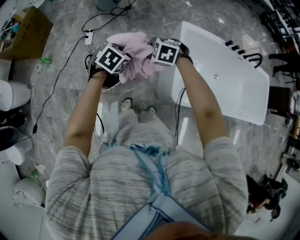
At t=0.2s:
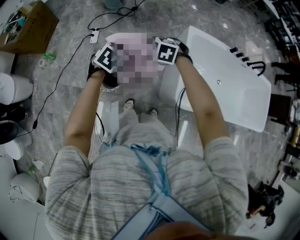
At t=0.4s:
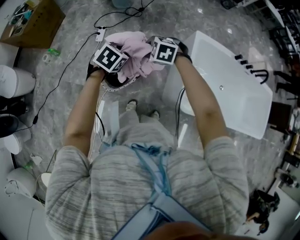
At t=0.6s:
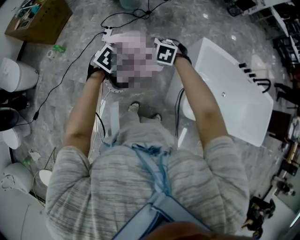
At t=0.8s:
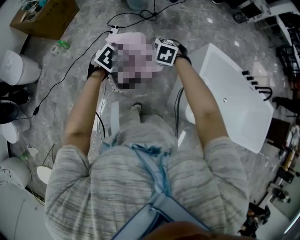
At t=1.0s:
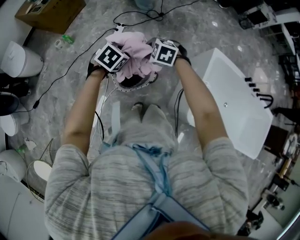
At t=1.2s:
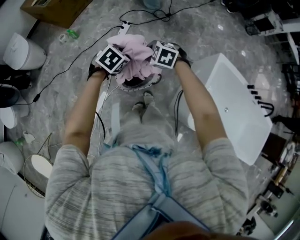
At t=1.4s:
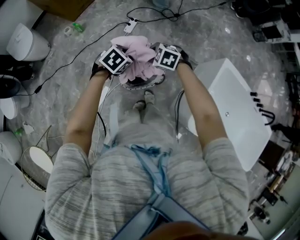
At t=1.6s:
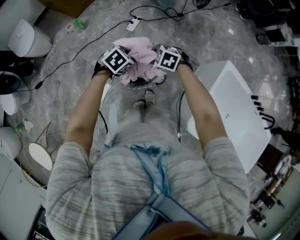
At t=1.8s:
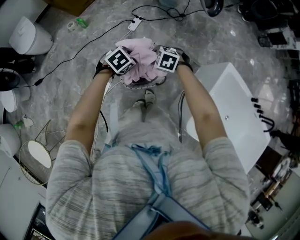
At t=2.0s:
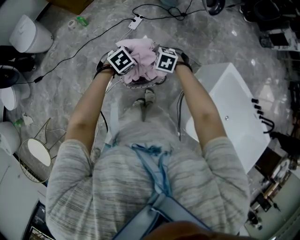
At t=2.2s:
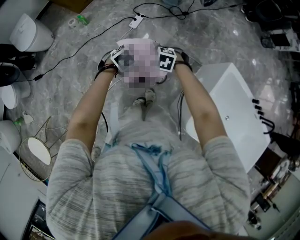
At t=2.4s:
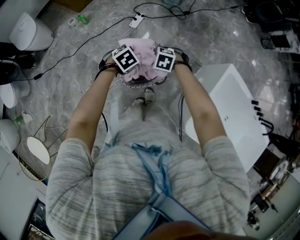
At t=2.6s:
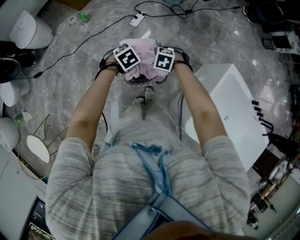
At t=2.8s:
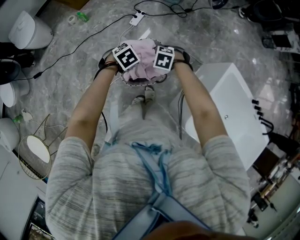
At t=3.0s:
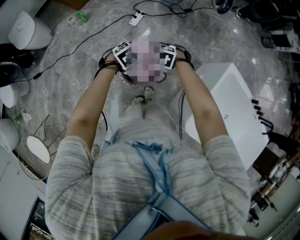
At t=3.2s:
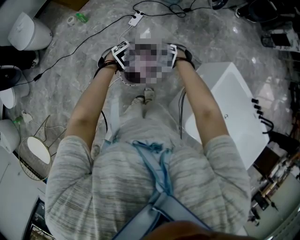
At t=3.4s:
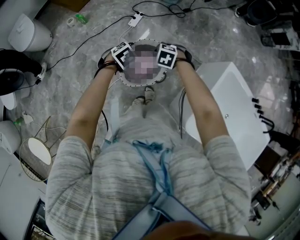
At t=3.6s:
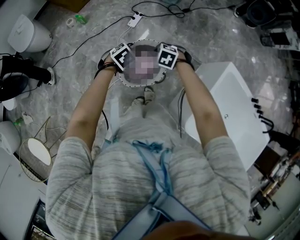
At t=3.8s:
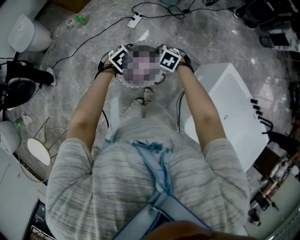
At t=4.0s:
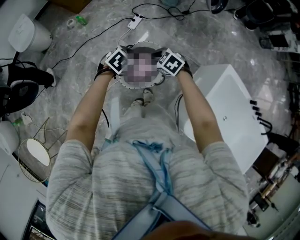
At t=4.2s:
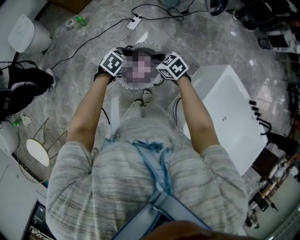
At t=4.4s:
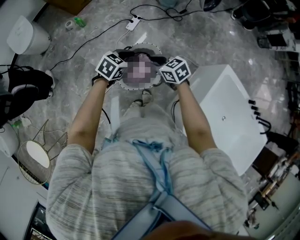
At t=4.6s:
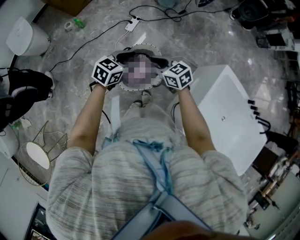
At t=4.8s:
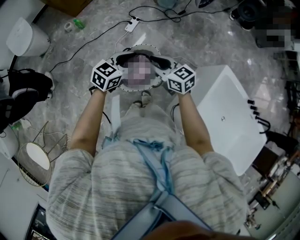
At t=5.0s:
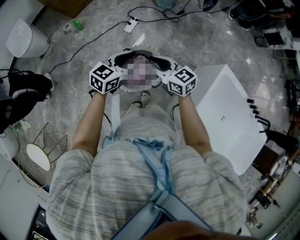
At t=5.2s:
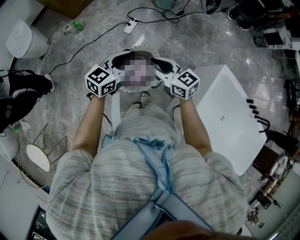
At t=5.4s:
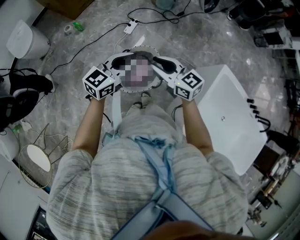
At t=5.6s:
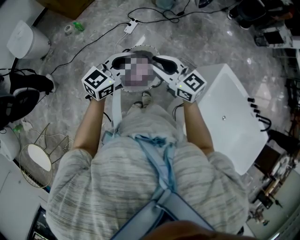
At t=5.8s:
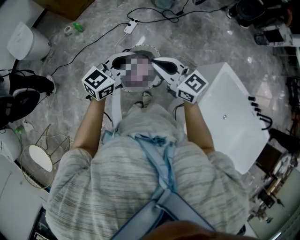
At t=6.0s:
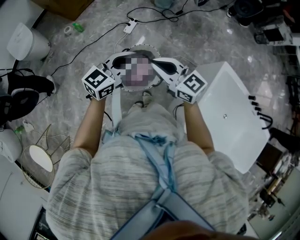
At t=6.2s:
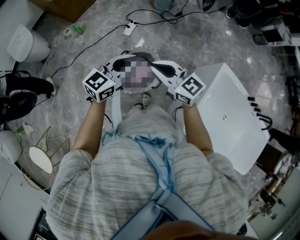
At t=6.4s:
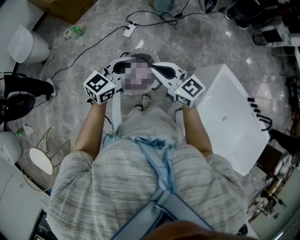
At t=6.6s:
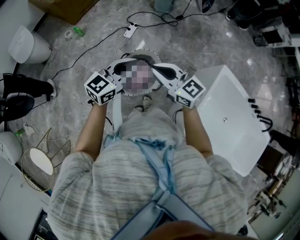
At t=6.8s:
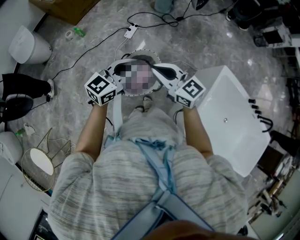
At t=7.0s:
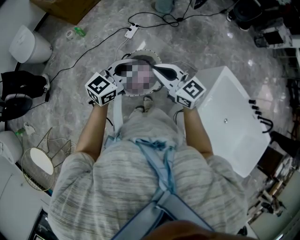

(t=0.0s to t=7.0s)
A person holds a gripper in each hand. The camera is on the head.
t=0.0s - t=1.4s: The left gripper shifts approximately 25 cm to the left. Meanwhile the right gripper travels to the left and forward by roughly 25 cm.
t=1.4s - t=2.8s: Both grippers travel together downward, roughly 10 cm.
t=2.8s - t=4.2s: The left gripper changes its angle by roughly 20 degrees, while the right gripper is displaced upward by approximately 5 cm, and swivels roughly 40 degrees.
t=4.2s - t=5.6s: Both grippers move upward, about 20 cm. The left gripper points its fingers about 40 degrees further upward. Meanwhile the right gripper tips its fingers upward by roughly 40 degrees.
t=5.6s - t=7.0s: The grippers move only a little.

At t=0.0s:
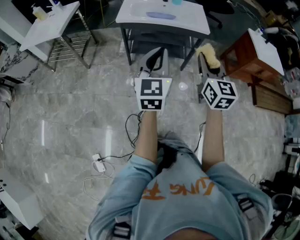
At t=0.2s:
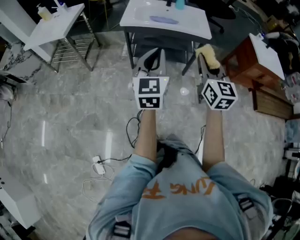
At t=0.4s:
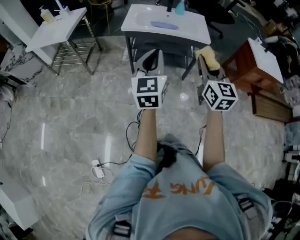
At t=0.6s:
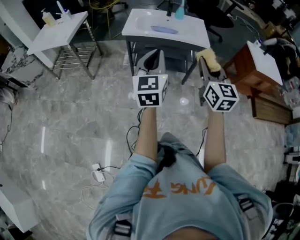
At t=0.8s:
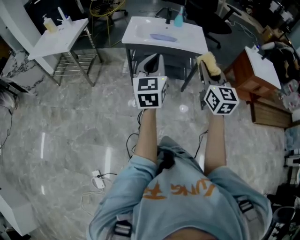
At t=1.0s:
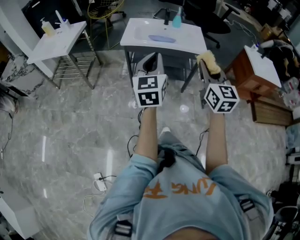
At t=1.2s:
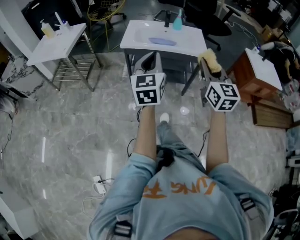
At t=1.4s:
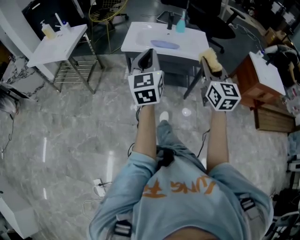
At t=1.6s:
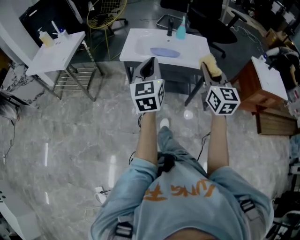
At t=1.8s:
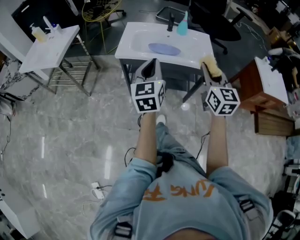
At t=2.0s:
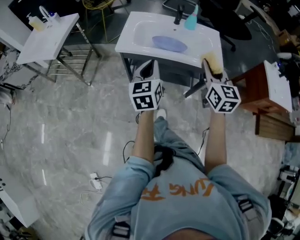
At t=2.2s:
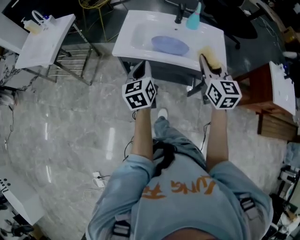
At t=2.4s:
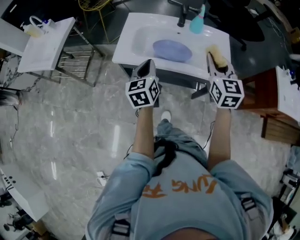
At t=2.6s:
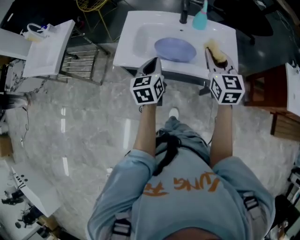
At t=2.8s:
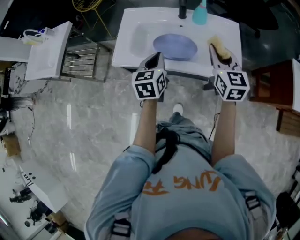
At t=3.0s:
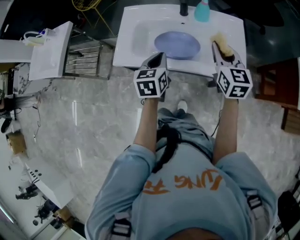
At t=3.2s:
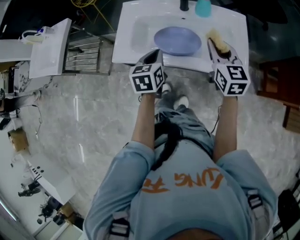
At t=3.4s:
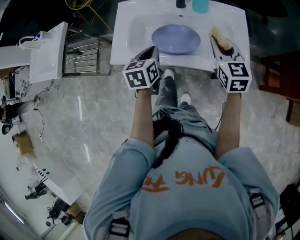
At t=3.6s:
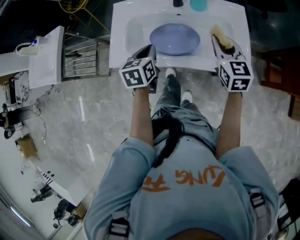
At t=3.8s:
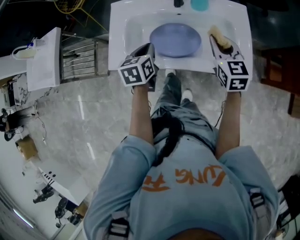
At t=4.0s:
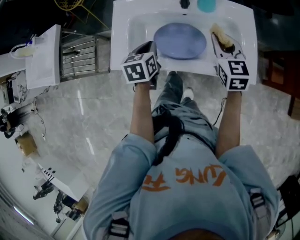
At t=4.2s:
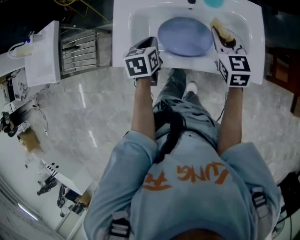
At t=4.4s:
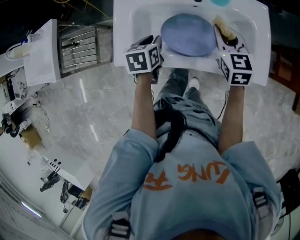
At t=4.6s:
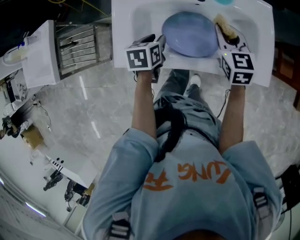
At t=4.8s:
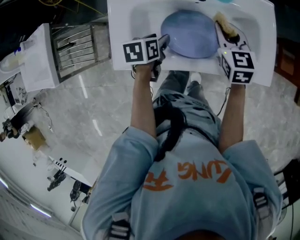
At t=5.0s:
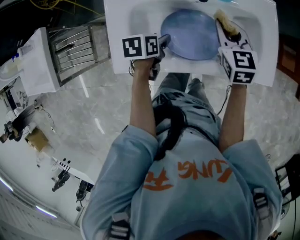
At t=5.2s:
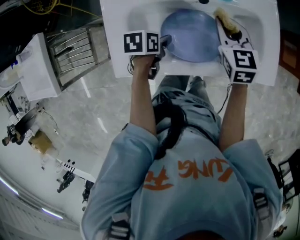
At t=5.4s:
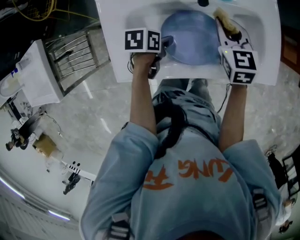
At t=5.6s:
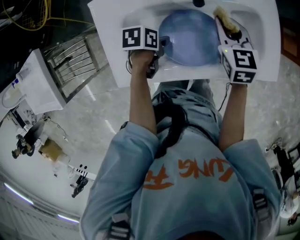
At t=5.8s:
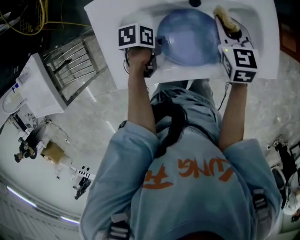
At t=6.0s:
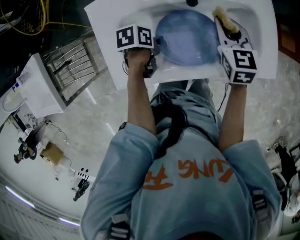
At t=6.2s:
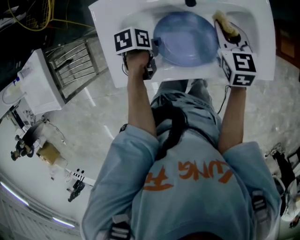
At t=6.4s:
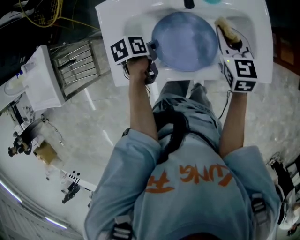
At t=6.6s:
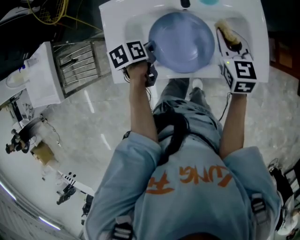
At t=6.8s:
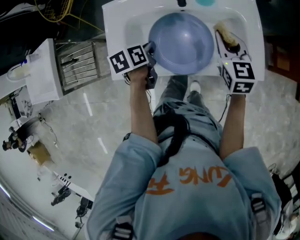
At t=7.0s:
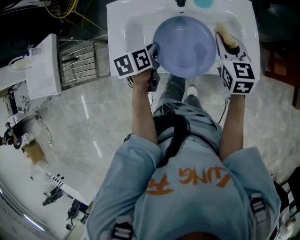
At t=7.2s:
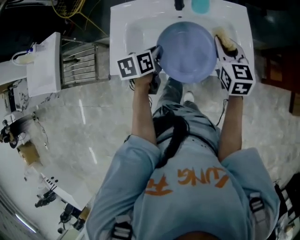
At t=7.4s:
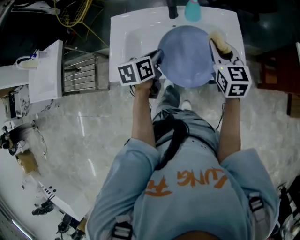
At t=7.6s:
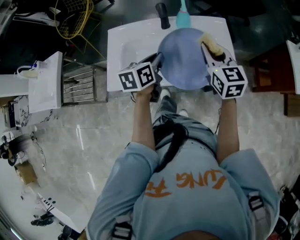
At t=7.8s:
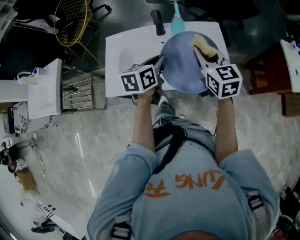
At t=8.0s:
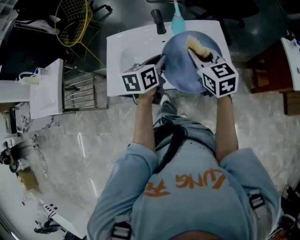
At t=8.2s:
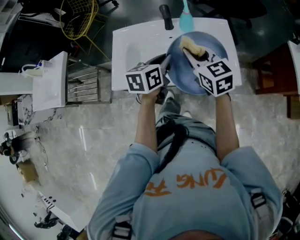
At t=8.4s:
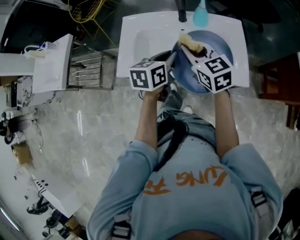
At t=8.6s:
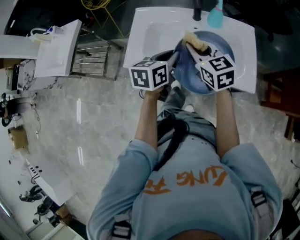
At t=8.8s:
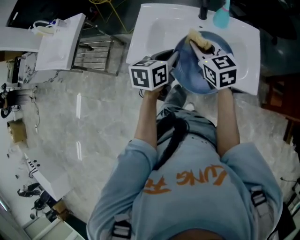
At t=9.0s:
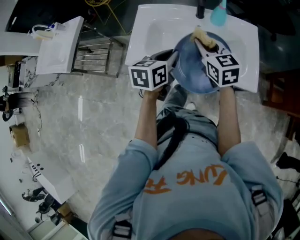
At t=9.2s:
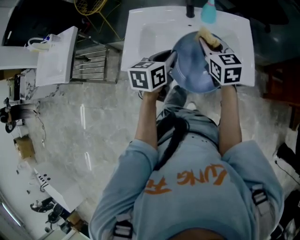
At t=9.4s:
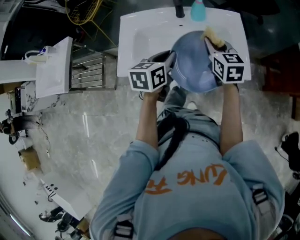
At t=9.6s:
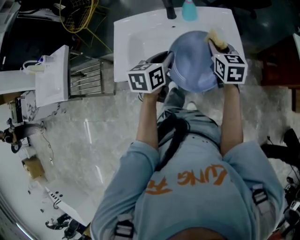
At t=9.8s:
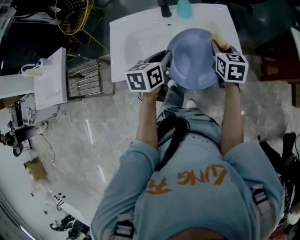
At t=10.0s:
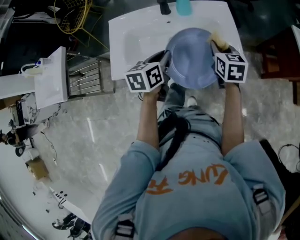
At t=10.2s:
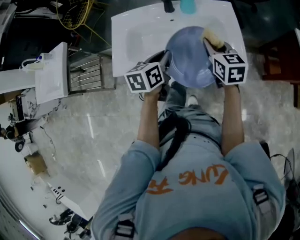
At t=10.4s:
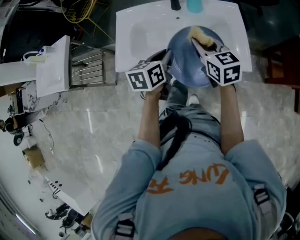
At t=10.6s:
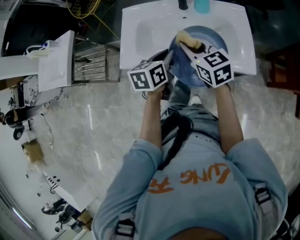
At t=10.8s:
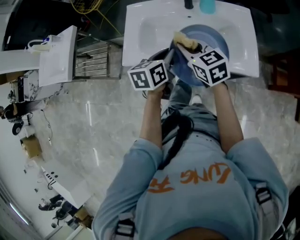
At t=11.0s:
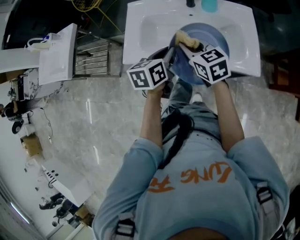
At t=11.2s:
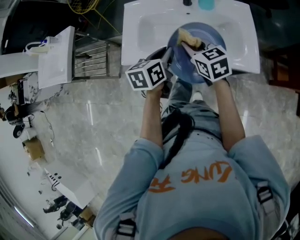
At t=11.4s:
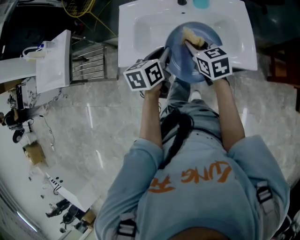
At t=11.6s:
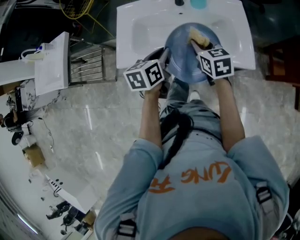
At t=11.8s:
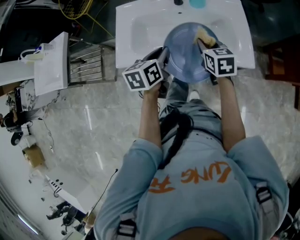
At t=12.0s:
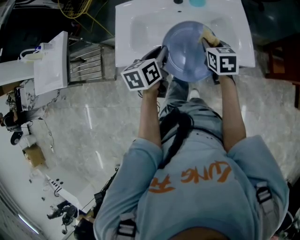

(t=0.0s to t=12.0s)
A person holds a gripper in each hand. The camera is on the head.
t=0.0s - t=1.6s: The grippers both shift forward by roughly 15 cm.
t=1.6s - t=3.0s: The right gripper goes about 40 cm forward; the left gripper is displaced forward and downward by approximately 40 cm, and tips its fingers downward by approximately 30 degrees.
t=3.0s - t=4.4s: Both grippers travel together downward, forward and to the left, some 15 cm. The left gripper rotates about 20 degrees, and opens.
t=4.4s - t=6.0s: The left gripper travels downward by about 10 cm, rotates some 40 degrees, and opens, then closes again; the right gripper shifts about 5 cm downward.
t=6.0s - t=7.6s: Both grippers move upward, some 20 cm. The right gripper changes its angle by some 20 degrees. Meanwhile the left gripper tilts its fingers some 30 degrees upward.
t=7.6s - t=9.0s: The right gripper heads to the left, covering approximately 15 cm. The left gripper heads to the left and backward, covering some 10 cm.
t=9.0s - t=10.4s: The grippers both shift to the right by about 5 cm.
t=10.4s - t=12.0s: The right gripper moves downward, some 10 cm, and reaches roughly 10 cm to the left, then returns.

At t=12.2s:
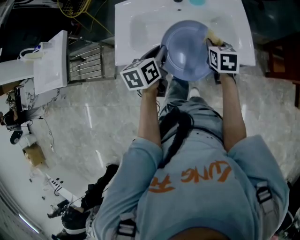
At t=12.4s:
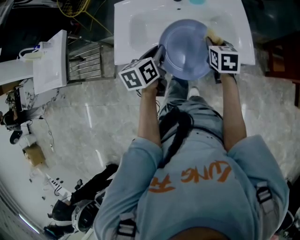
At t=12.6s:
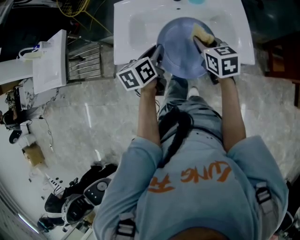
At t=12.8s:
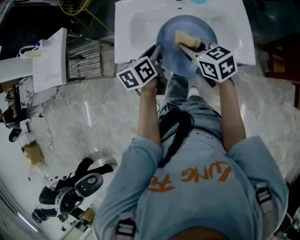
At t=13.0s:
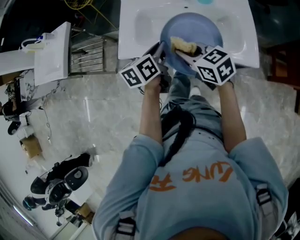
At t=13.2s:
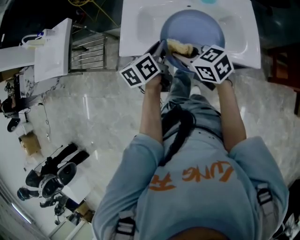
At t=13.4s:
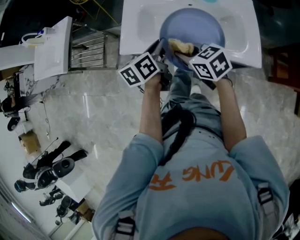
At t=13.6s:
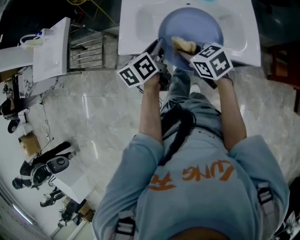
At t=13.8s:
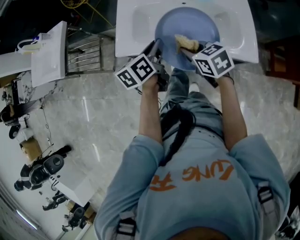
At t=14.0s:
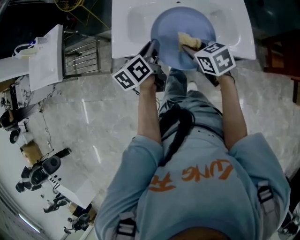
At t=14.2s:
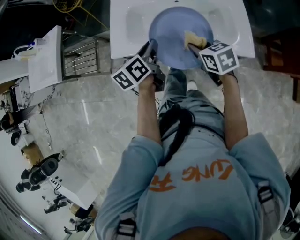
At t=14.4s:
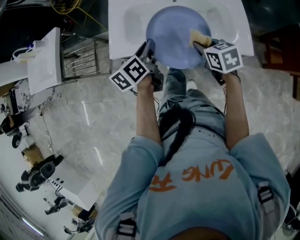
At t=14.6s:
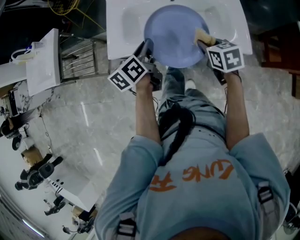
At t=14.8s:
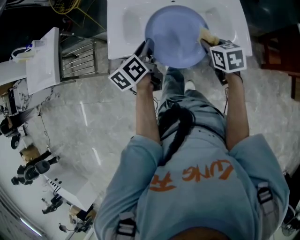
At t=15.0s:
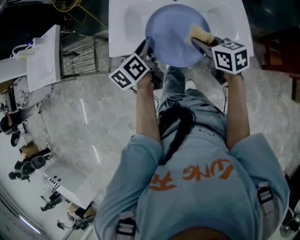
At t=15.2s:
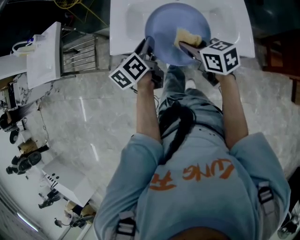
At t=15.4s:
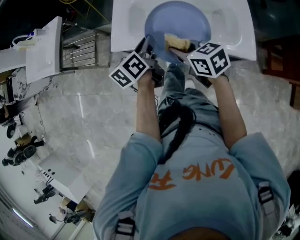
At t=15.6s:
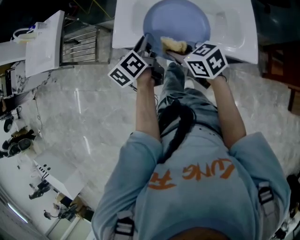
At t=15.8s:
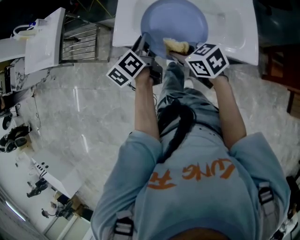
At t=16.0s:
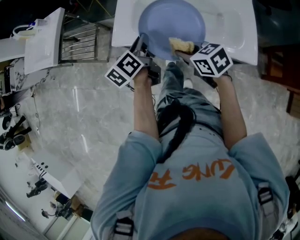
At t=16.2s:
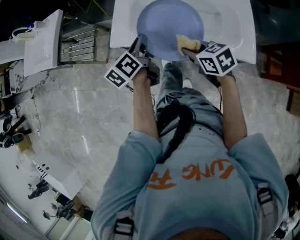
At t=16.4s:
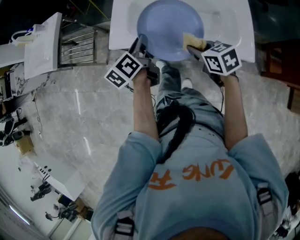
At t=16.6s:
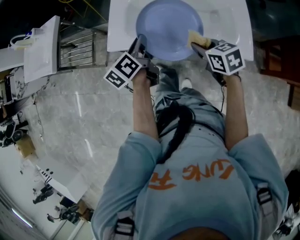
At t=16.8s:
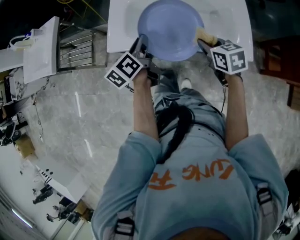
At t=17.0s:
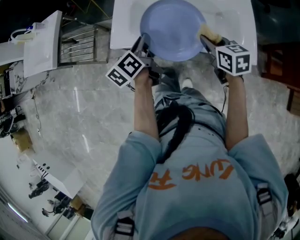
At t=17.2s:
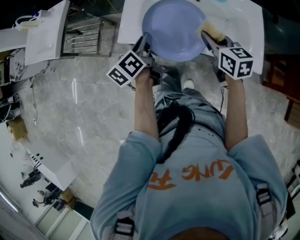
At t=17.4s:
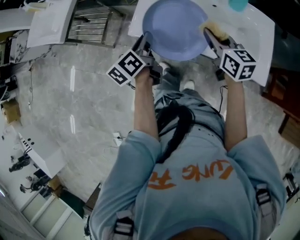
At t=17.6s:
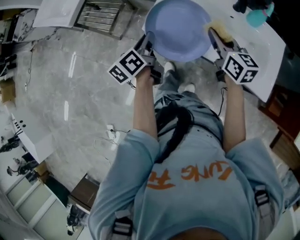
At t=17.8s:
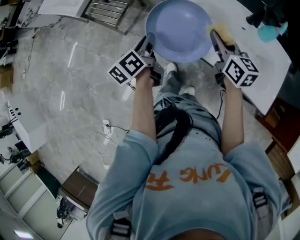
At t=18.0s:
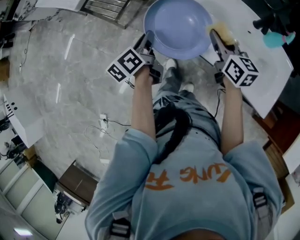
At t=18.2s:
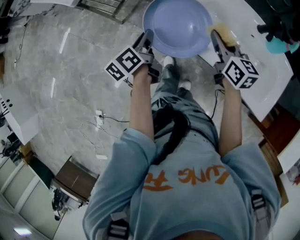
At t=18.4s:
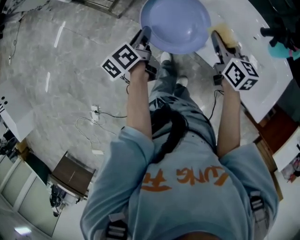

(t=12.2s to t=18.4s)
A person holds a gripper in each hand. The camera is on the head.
t=12.2s - t=13.8s: The right gripper changes place by about 15 cm, and turns by some 40 degrees.
t=13.8s - t=15.4s: The right gripper travels to the right and back again, approximately 15 cm each way.
t=15.4s - t=16.8s: The right gripper travels to the right by approximately 15 cm.
t=16.8s - t=18.4s: The left gripper is displaced to the left by approximately 25 cm, and changes its angle by roughly 30 degrees. The right gripper heads to the left and forward, covering some 25 cm.
